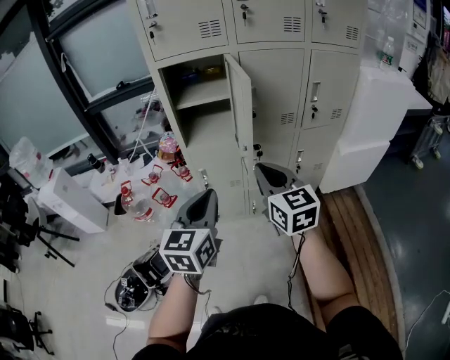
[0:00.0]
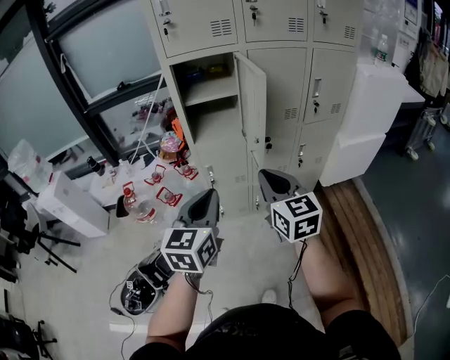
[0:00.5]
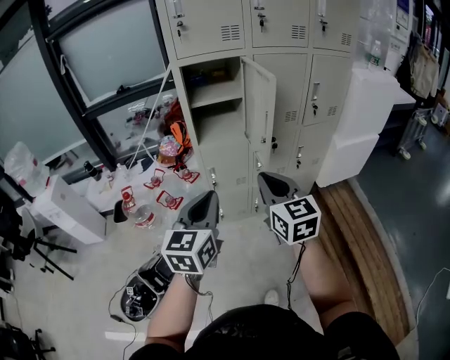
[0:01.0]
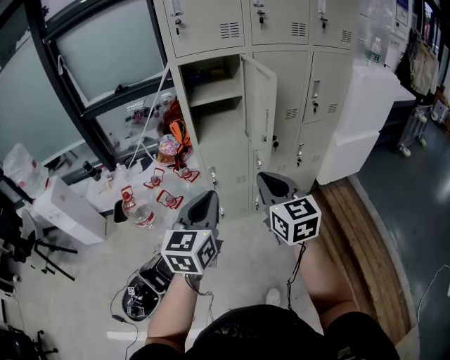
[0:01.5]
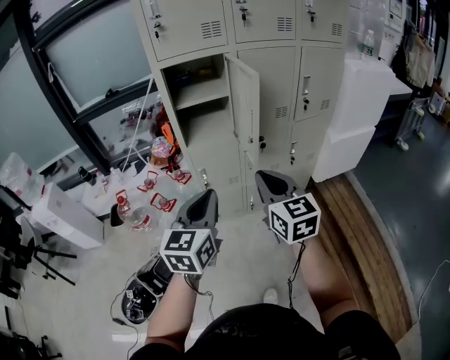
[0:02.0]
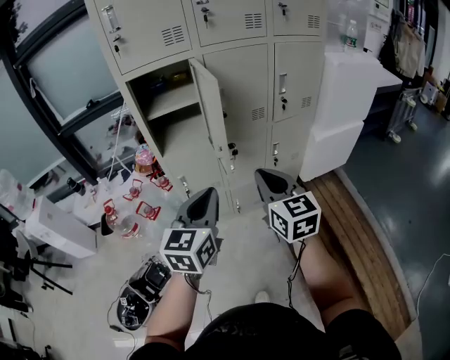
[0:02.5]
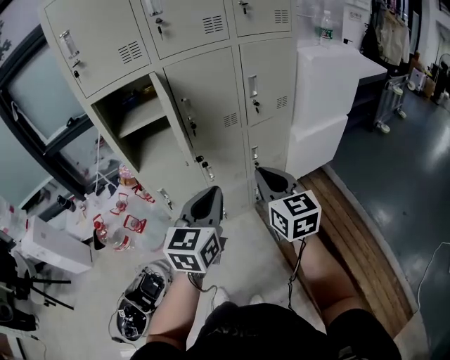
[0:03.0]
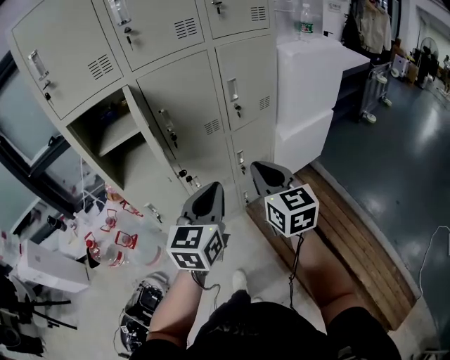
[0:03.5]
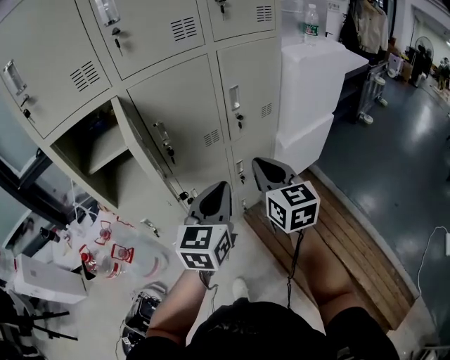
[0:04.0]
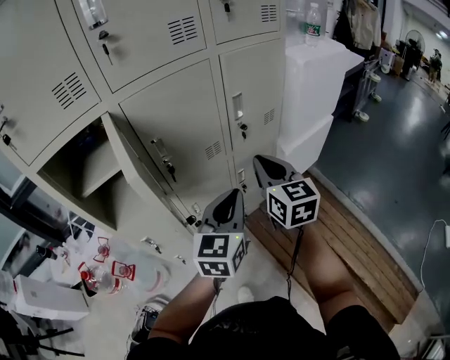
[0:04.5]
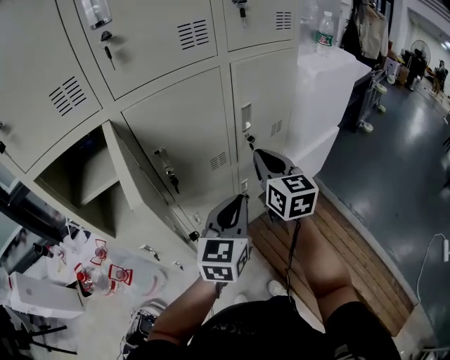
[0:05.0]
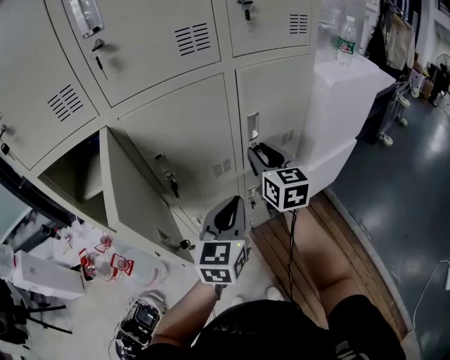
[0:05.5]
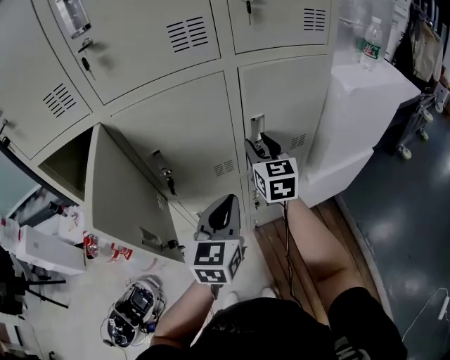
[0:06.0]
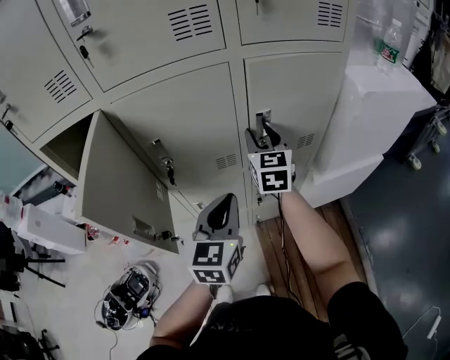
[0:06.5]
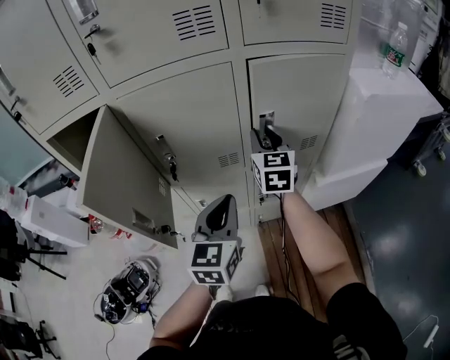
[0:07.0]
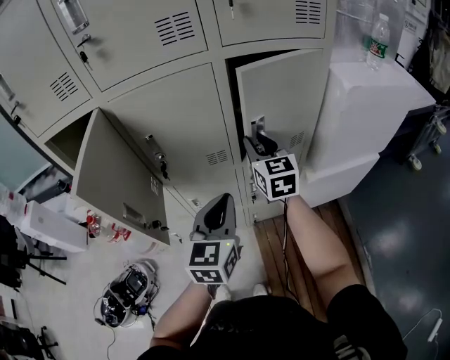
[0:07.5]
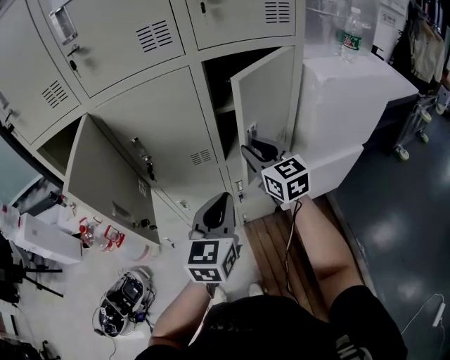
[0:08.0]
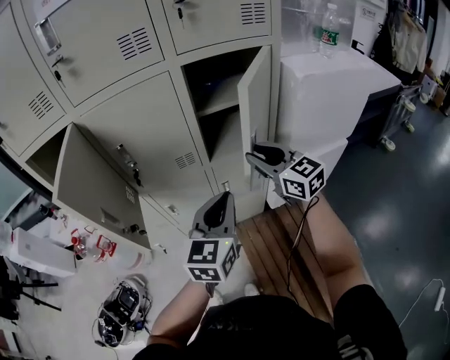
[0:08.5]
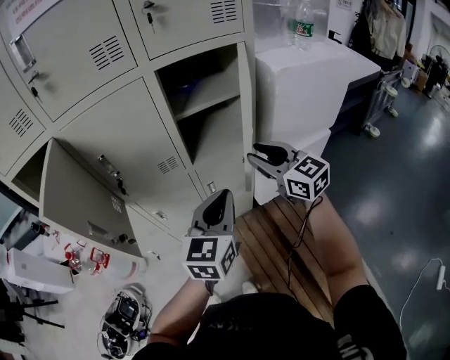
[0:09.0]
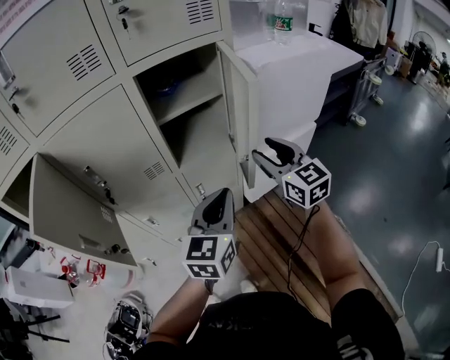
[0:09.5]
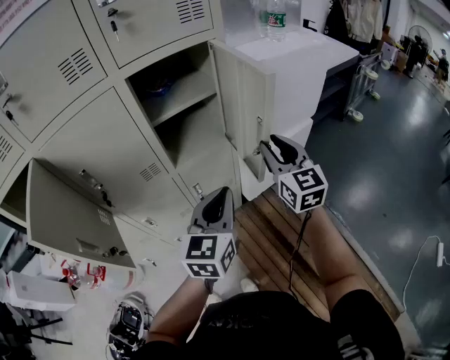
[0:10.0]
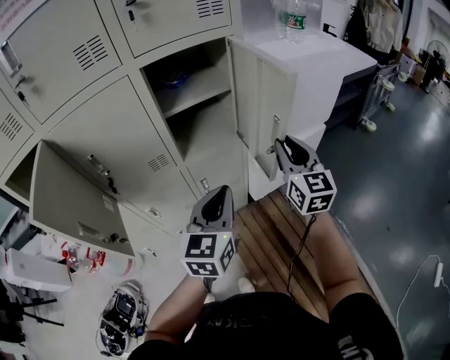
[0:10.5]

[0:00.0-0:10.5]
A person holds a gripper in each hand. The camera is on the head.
0:00.0 to 0:02.0: The right gripper shifts some 10 cm backward and to the left. The left gripper is displaced to the left by about 5 cm.
0:02.0 to 0:04.0: The two grippers go about 35 cm to the right and forward.
0:04.0 to 0:06.5: The right gripper shifts roughly 30 cm forward, and opens its fingers. Meanwhile the left gripper is displaced forward by roughly 15 cm, and turns by some 20 degrees.
0:06.5 to 0:08.5: The left gripper heads to the right and backward, covering approximately 15 cm; the right gripper moves backward and to the right, roughly 20 cm, and turns by some 30 degrees.
0:08.5 to 0:10.5: The right gripper moves to the right, roughly 15 cm, turns by approximately 40 degrees, and opens, then closes again; the left gripper shifts some 5 cm to the right.

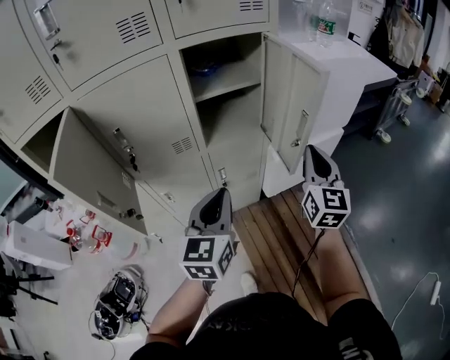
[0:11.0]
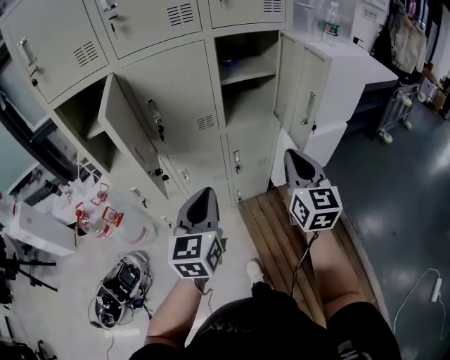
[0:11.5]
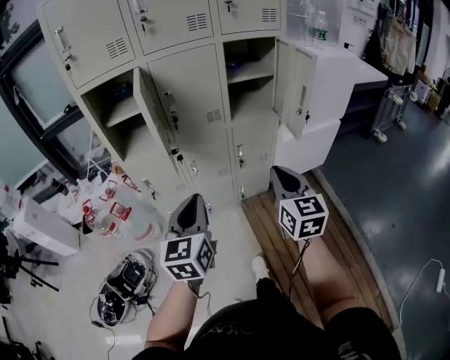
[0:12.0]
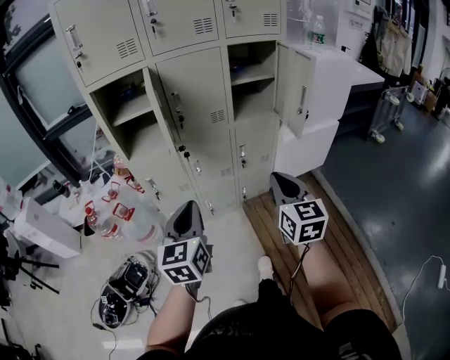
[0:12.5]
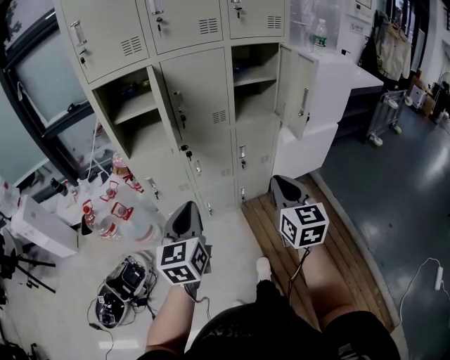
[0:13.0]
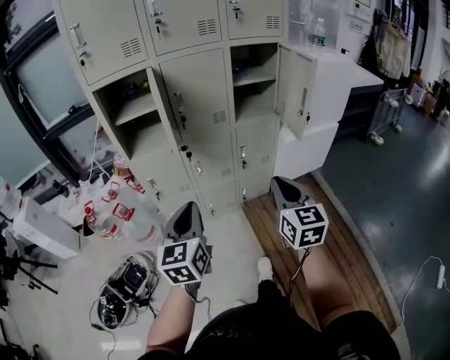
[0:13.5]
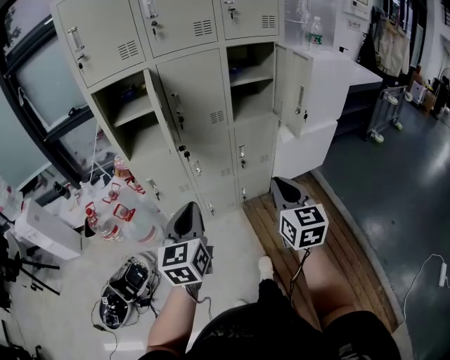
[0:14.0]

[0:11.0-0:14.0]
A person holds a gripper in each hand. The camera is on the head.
0:11.0 to 0:12.5: Both grippers move backward and to the left, roughly 35 cm.
0:12.5 to 0:14.0: The grippers move only a little.

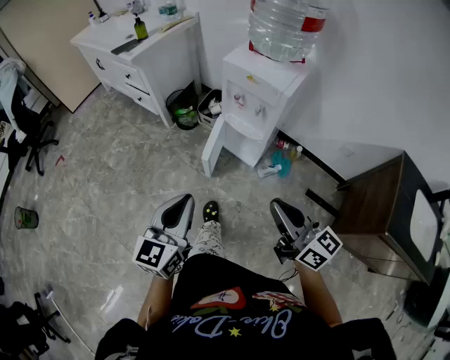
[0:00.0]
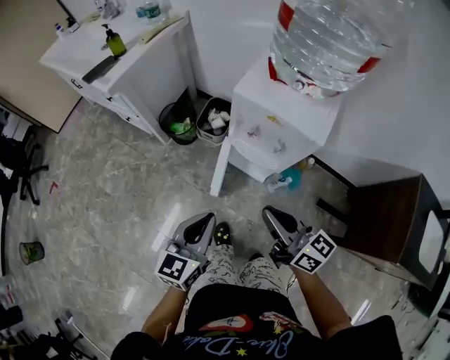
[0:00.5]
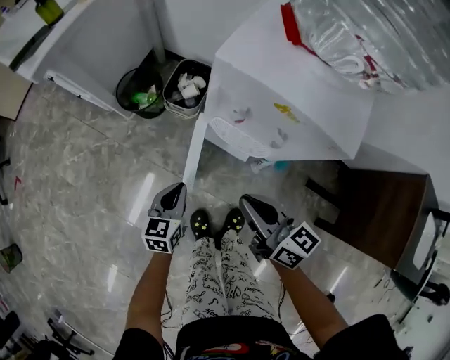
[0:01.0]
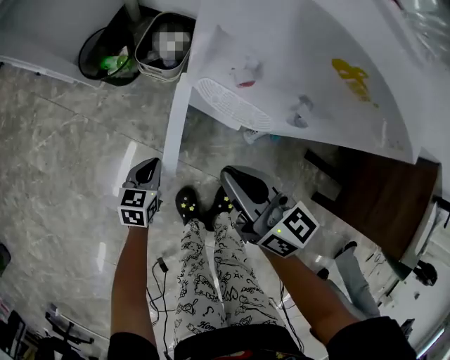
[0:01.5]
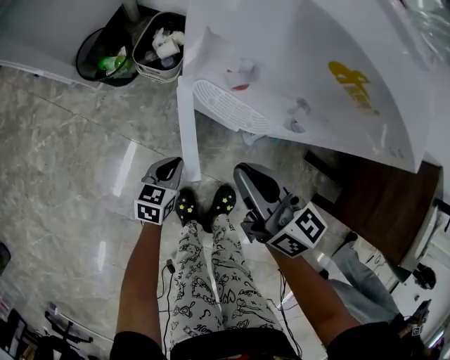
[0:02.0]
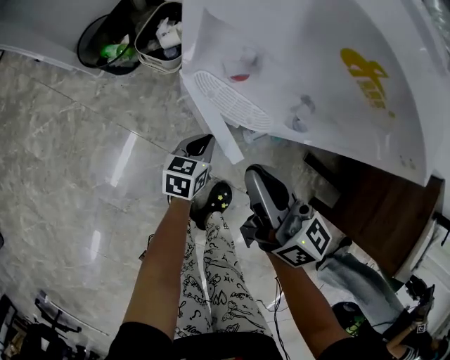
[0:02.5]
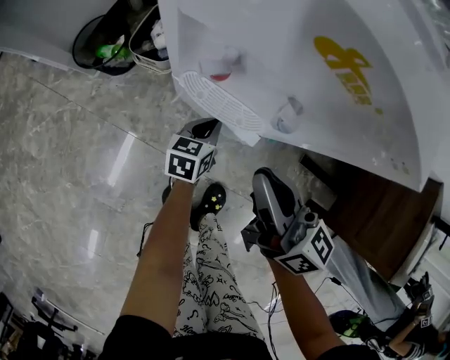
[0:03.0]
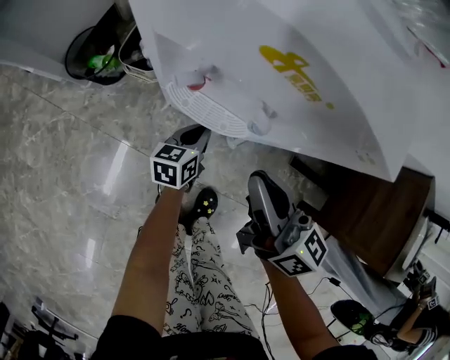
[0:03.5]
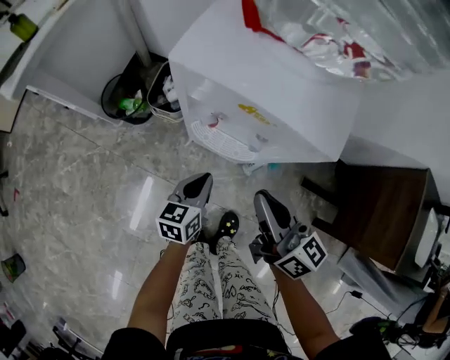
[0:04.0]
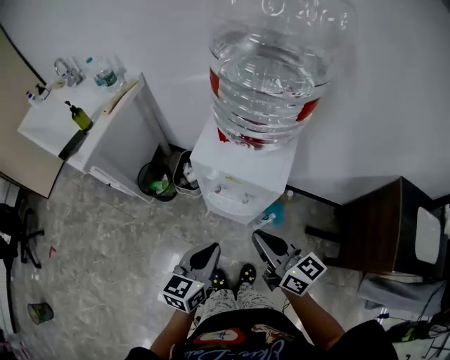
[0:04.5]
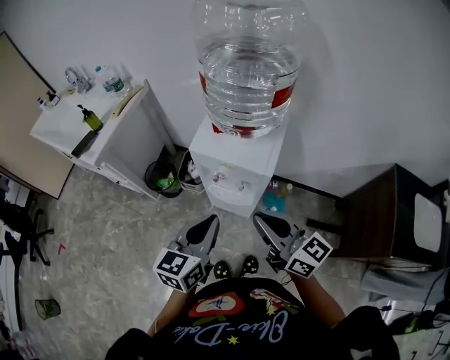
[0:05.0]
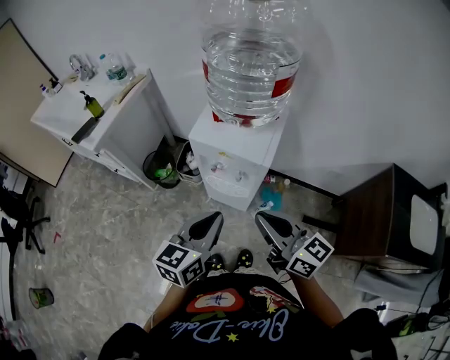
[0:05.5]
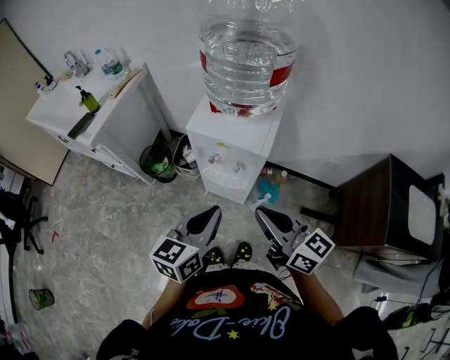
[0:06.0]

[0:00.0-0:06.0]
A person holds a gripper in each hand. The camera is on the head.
0:00.0 to 0:02.0: The right gripper heads forward and downward, covering roughly 50 cm; the left gripper goes about 60 cm downward and forward, and tips its fingers downward by approximately 30 degrees.
0:02.0 to 0:04.0: The two grippers go about 15 cm upward and to the right.
0:04.0 to 0:06.0: The left gripper shifts some 40 cm upward. Meanwhile the right gripper shifts approximately 30 cm upward and backward.

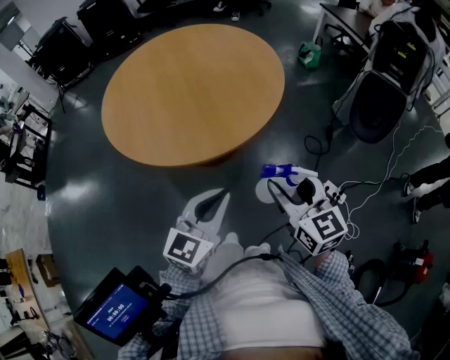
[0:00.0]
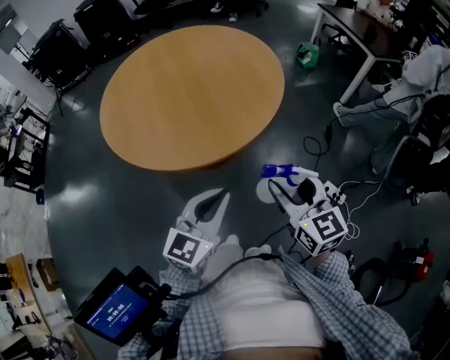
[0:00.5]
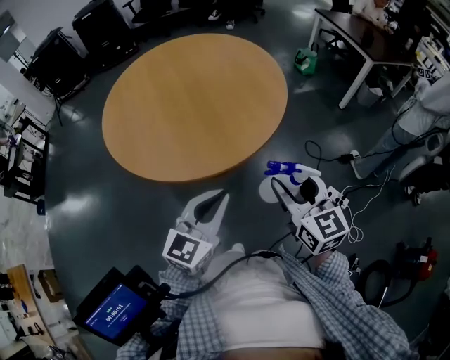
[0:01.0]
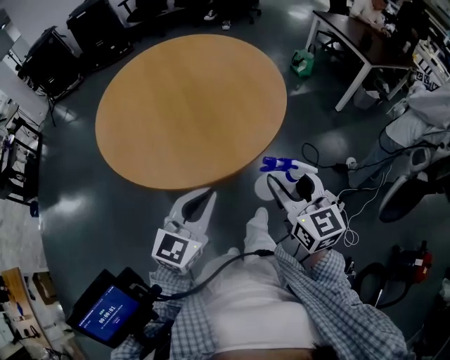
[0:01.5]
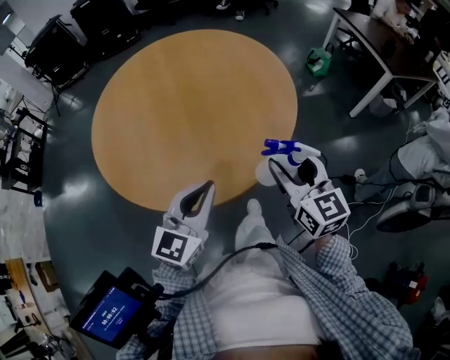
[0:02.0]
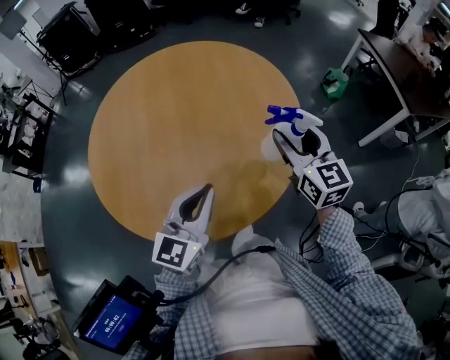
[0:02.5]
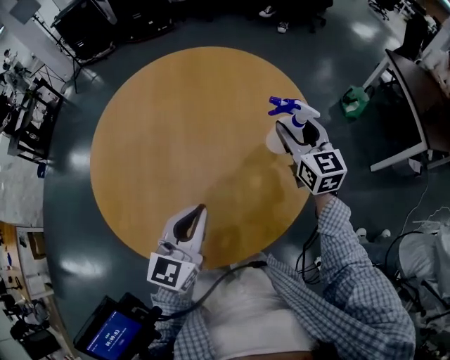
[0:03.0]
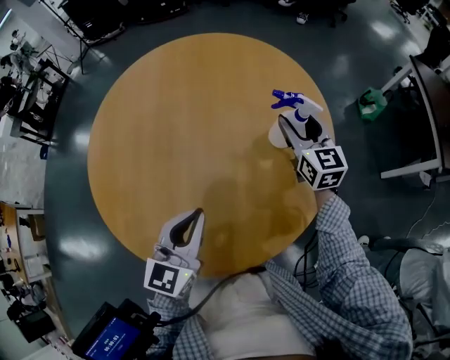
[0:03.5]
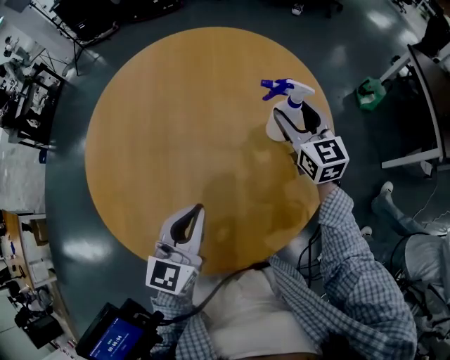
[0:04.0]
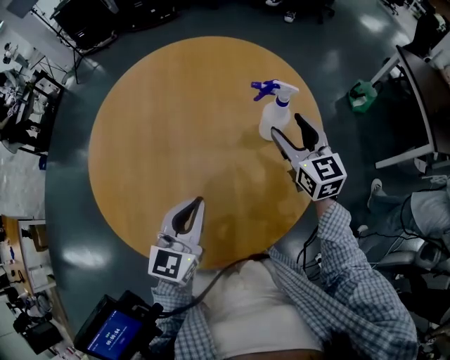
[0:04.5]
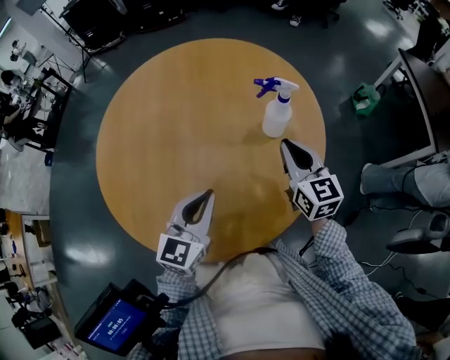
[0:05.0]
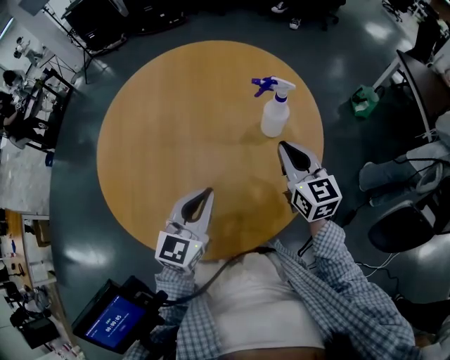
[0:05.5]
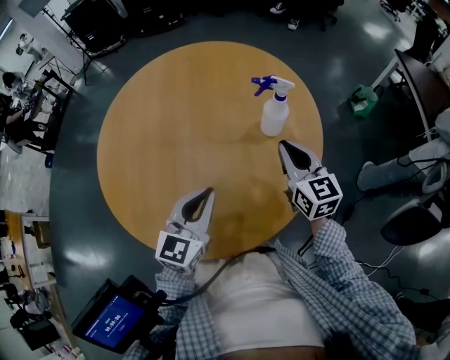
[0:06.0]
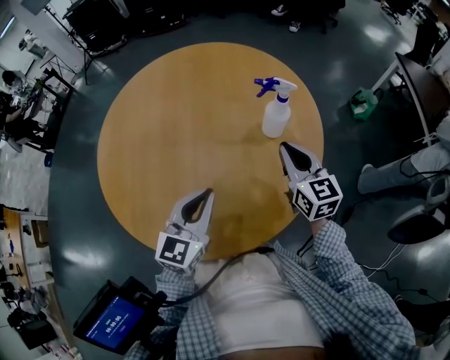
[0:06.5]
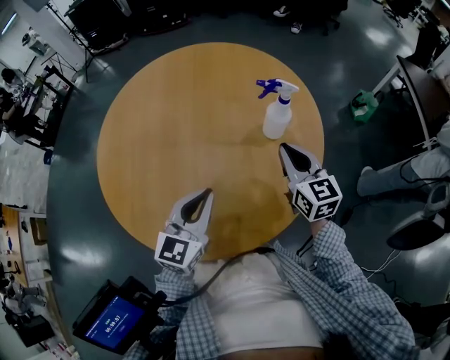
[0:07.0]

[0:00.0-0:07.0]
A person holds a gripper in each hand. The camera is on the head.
0:00.0 to 0:02.0: The grippers both shift forward by approximately 20 cm.
0:02.0 to 0:03.5: The right gripper is displaced forward by approximately 40 cm, while the left gripper is displaced forward by roughly 20 cm, and rotates about 20 degrees.
0:03.5 to 0:05.0: The right gripper travels backward by about 15 cm, and closes.
0:05.0 to 0:07.0: There are only small adjustments of the grippers.
